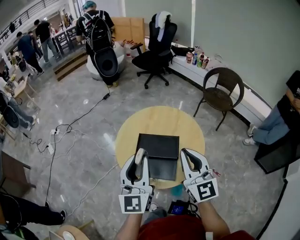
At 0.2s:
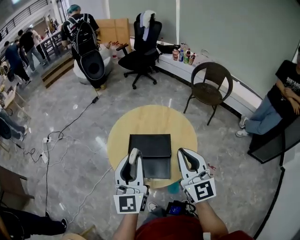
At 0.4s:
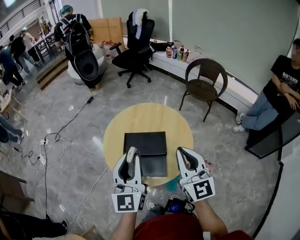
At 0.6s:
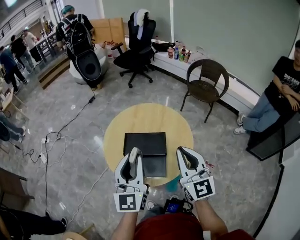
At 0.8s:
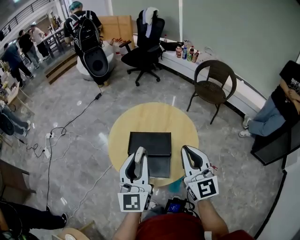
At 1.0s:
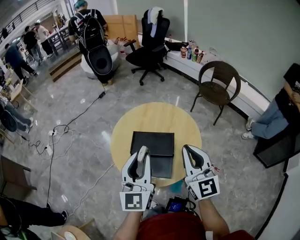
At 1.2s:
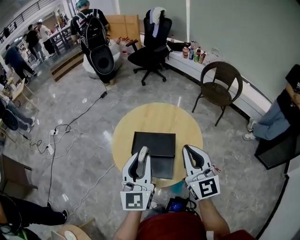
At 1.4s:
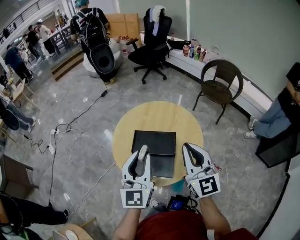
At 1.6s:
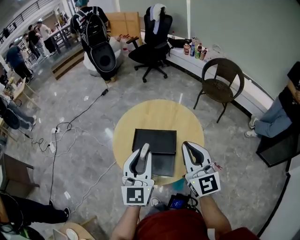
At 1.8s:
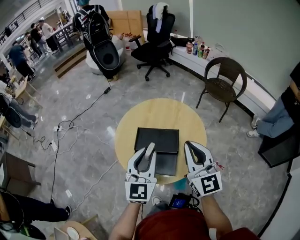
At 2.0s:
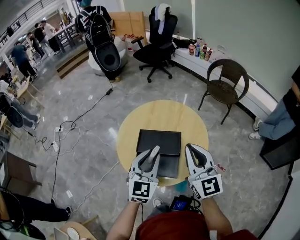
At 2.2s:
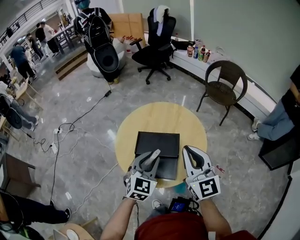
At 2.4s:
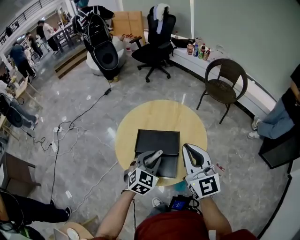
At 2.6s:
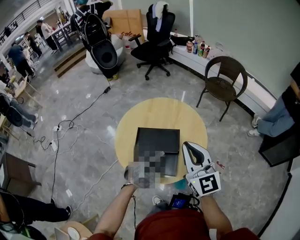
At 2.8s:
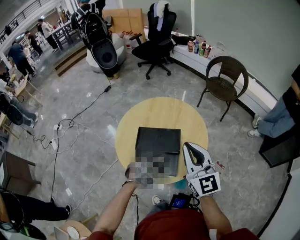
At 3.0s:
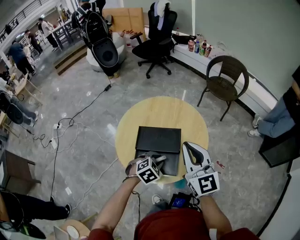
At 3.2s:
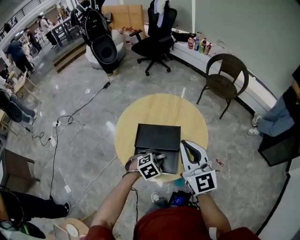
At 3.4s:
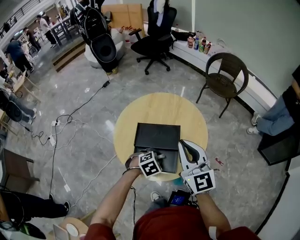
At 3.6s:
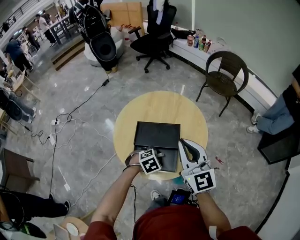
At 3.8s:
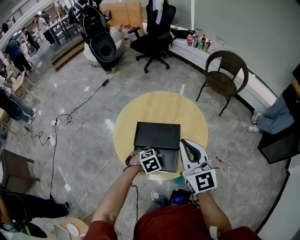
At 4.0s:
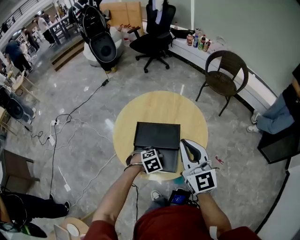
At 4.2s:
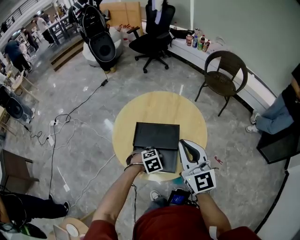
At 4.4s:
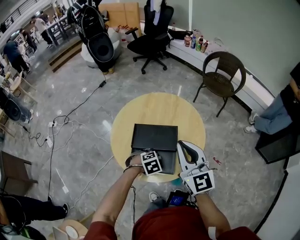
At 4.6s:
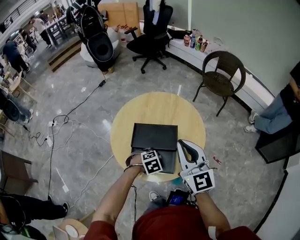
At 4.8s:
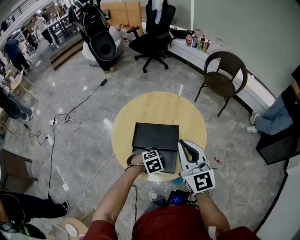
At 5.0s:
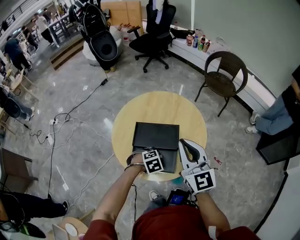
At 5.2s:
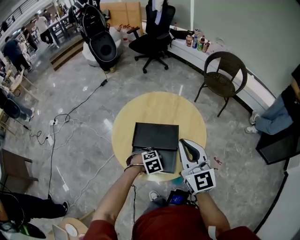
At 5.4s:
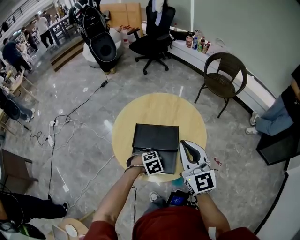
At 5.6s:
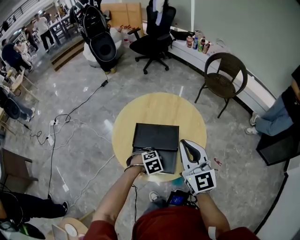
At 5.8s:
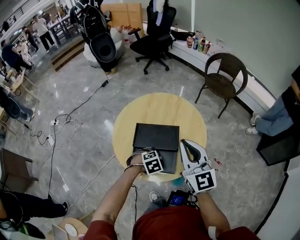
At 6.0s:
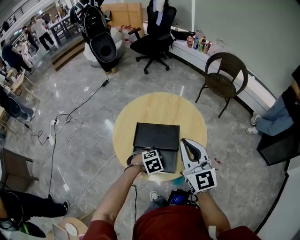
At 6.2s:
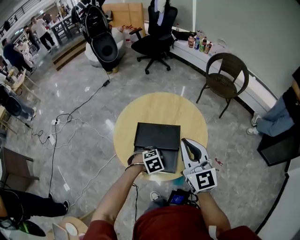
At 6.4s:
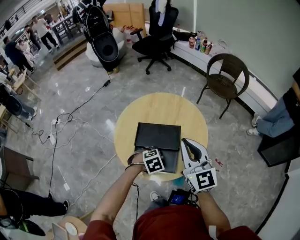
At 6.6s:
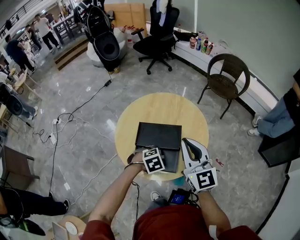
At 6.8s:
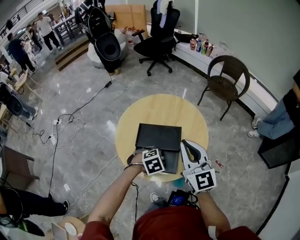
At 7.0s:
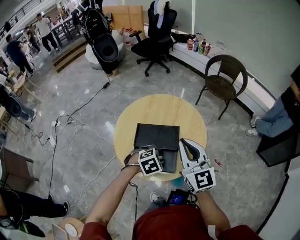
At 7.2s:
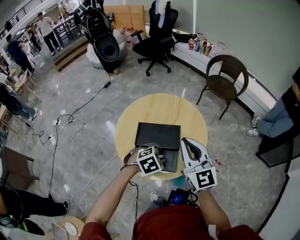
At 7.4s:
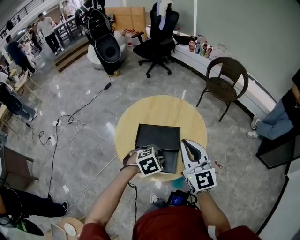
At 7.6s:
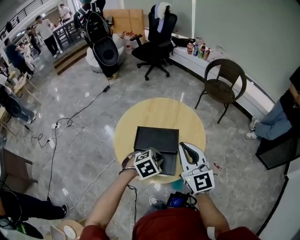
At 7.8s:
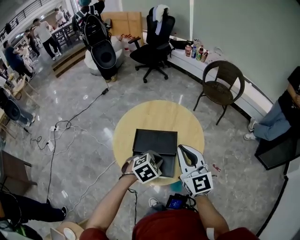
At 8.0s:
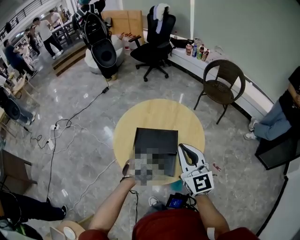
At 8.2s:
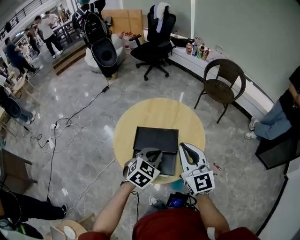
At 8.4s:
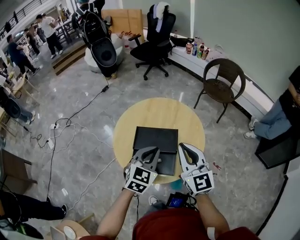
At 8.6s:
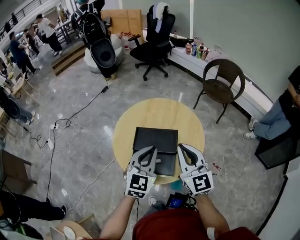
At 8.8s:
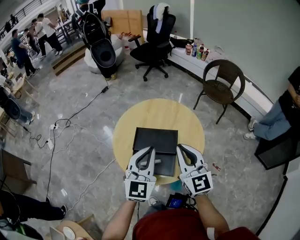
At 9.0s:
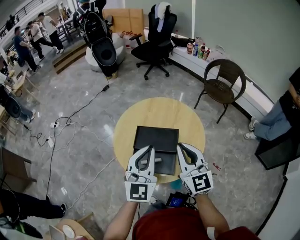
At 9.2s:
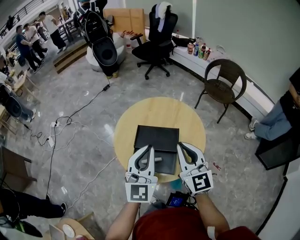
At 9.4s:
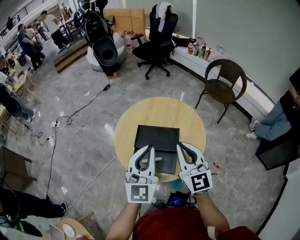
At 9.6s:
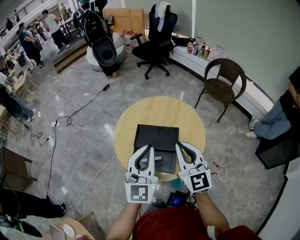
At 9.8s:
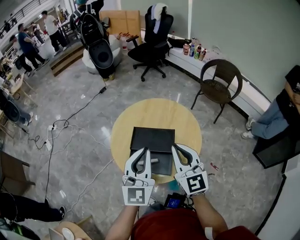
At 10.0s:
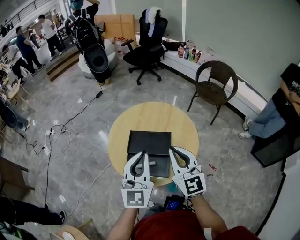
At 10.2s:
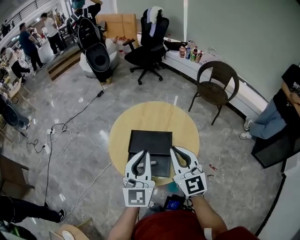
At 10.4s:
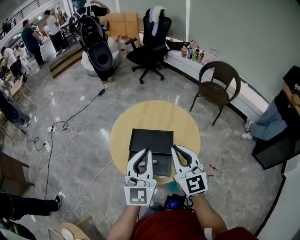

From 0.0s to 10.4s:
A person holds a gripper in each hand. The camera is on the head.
From 0.0s to 1.4s: The grippers move only a little.
From 1.4s to 3.0s: The left gripper travels downward by some 25 cm, and tips its fingers downward by roughly 60 degrees.
From 3.0s to 4.4s: The left gripper is displaced downward by approximately 5 cm.
From 4.4s to 6.0s: There are only small adjustments of the grippers.
From 6.0s to 7.4s: The left gripper shifts some 10 cm upward.
From 7.4s to 9.0s: The left gripper heads upward, covering some 20 cm, points its fingers some 70 degrees further upward, and closes.

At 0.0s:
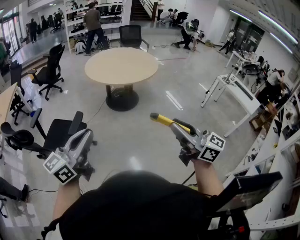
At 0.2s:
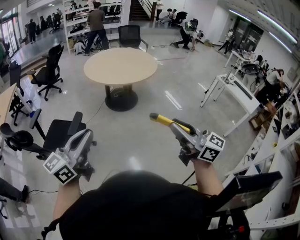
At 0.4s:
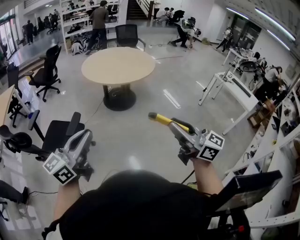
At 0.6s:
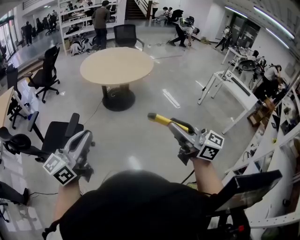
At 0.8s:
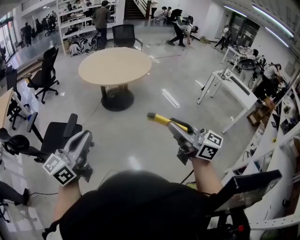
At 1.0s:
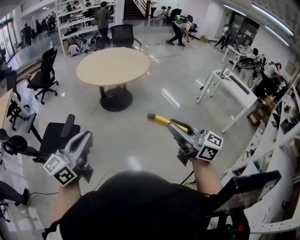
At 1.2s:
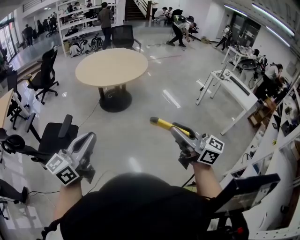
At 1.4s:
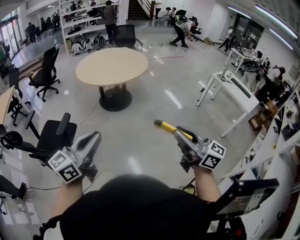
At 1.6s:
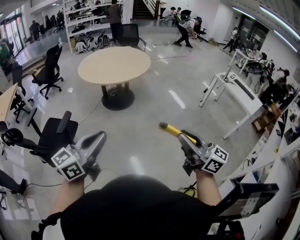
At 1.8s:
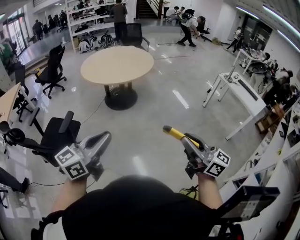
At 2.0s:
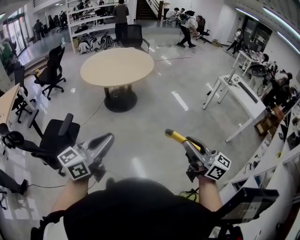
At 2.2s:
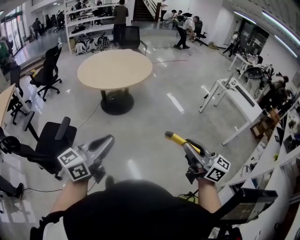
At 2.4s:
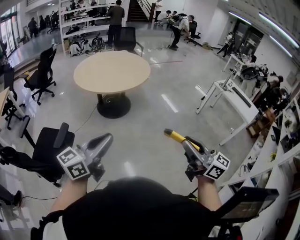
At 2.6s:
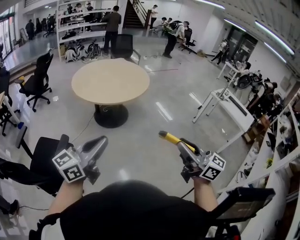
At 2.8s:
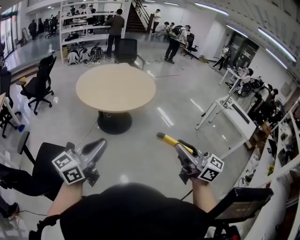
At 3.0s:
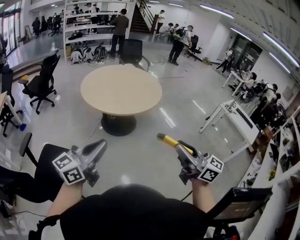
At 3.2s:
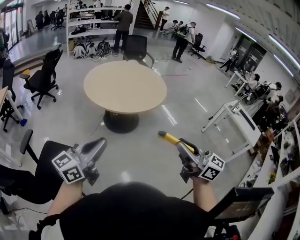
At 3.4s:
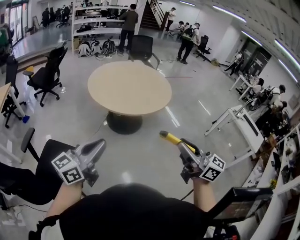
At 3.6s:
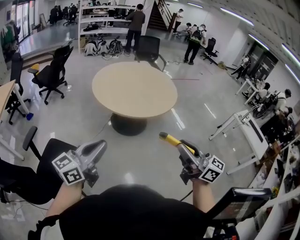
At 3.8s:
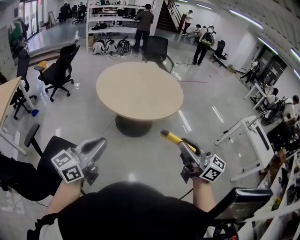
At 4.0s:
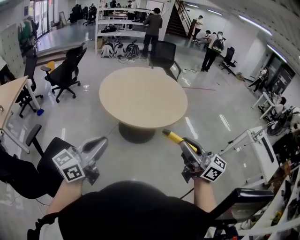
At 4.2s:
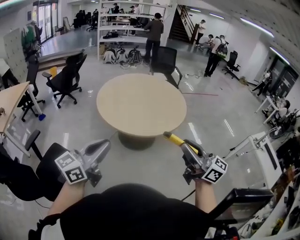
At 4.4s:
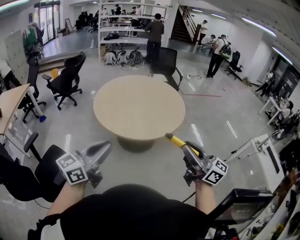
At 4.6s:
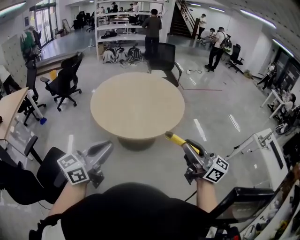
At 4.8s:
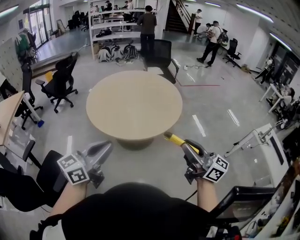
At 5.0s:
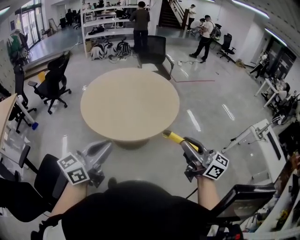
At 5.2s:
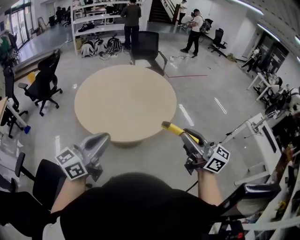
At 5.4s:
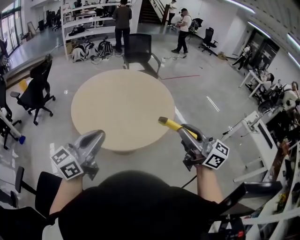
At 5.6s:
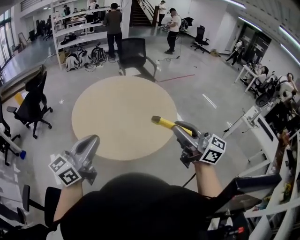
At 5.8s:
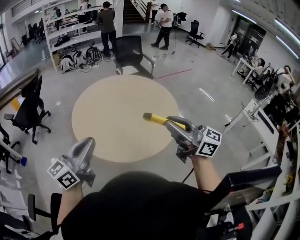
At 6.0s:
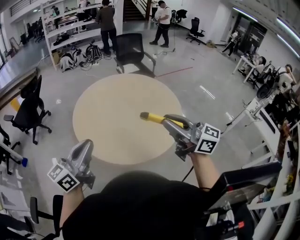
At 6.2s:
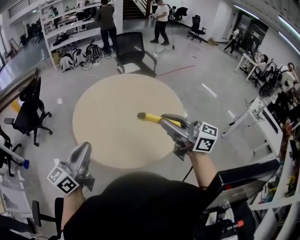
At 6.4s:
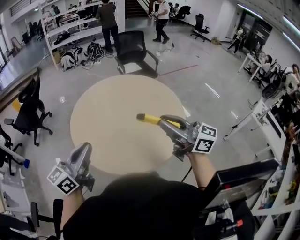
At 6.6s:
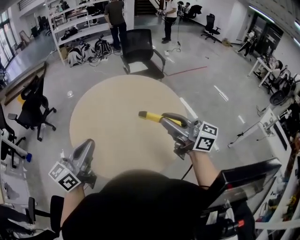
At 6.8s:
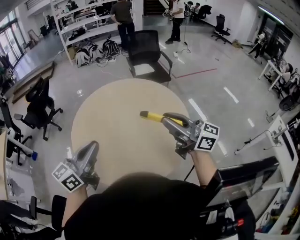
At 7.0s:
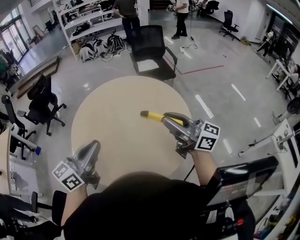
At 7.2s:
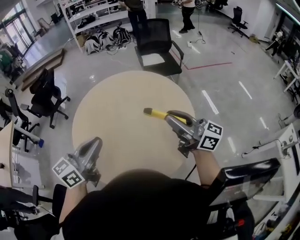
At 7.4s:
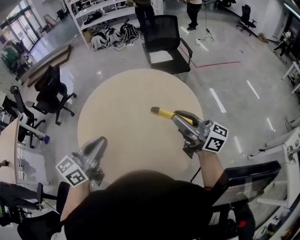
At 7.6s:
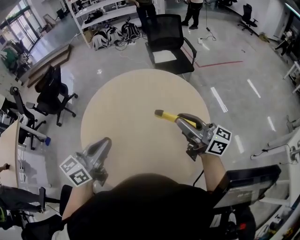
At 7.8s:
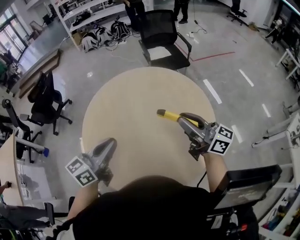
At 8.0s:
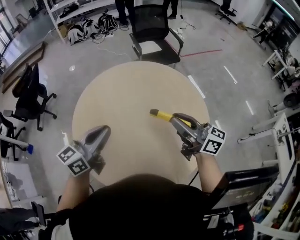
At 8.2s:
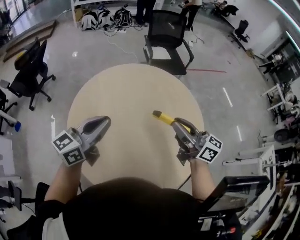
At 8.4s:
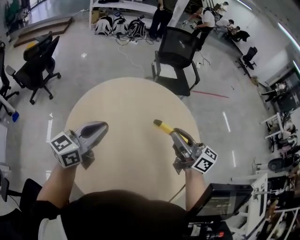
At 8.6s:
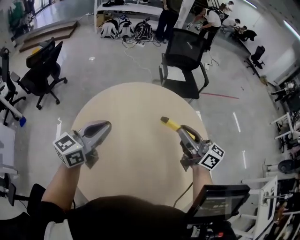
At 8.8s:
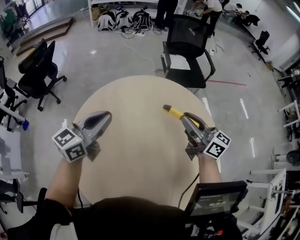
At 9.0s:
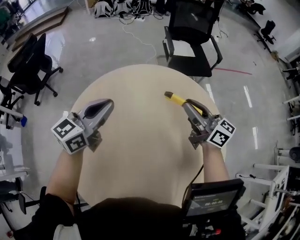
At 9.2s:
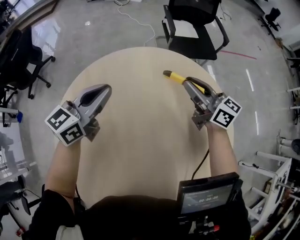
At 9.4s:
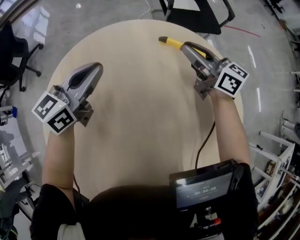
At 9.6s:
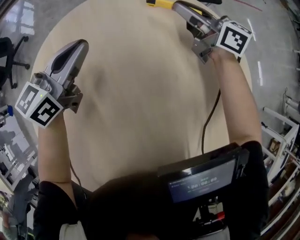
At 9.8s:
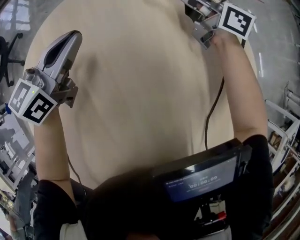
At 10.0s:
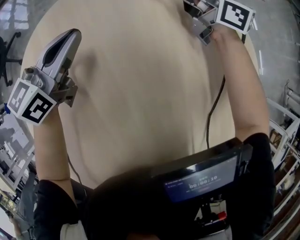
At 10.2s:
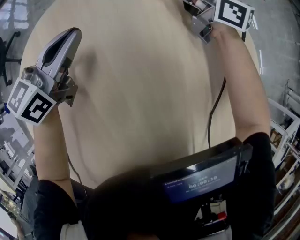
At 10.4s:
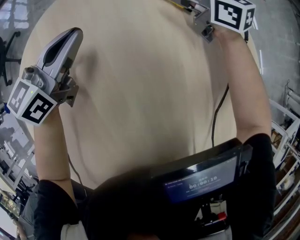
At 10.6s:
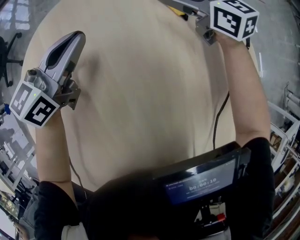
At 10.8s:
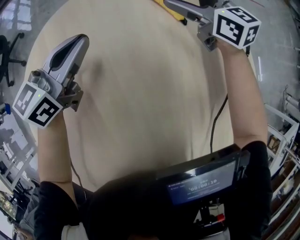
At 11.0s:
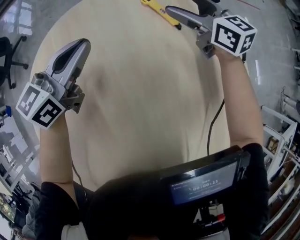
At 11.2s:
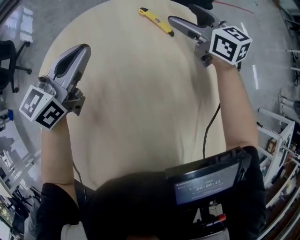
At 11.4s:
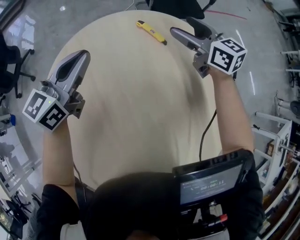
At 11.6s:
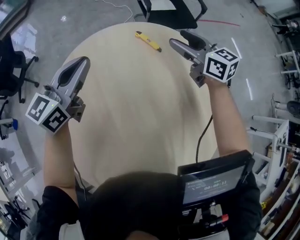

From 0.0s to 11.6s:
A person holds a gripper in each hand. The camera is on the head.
From 0.0s to 1.4s: Both grippers move to the right, roughly 15 cm.
From 1.4s to 2.8s: The grippers both shift forward and to the left by about 25 cm.
From 2.8s to 4.4s: Both grippers travel together forward, roughly 30 cm.
From 4.4s to 5.8s: Both grippers move forward and to the left, some 30 cm.
From 5.8s to 7.2s: The right gripper heads forward and to the right, covering roughly 35 cm, and turns by some 20 degrees, while the left gripper travels to the right and forward by roughly 30 cm.
From 7.2s to 8.8s: The right gripper heads forward and downward, covering some 35 cm, while the left gripper travels forward and to the left by roughly 35 cm.
From 8.8s to 10.2s: The left gripper moves downward and forward, about 30 cm. Meanwhile the right gripper moves forward and downward, approximately 35 cm, and changes its angle by roughly 20 degrees.
From 10.2s to 11.6s: The left gripper heads upward, covering some 20 cm; the right gripper is displaced upward and backward by some 20 cm, and opens.

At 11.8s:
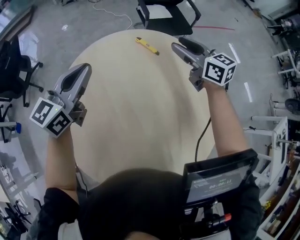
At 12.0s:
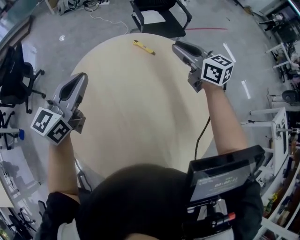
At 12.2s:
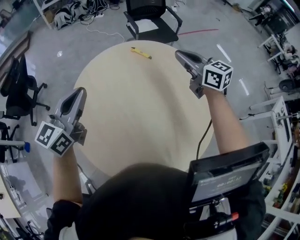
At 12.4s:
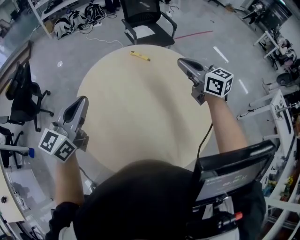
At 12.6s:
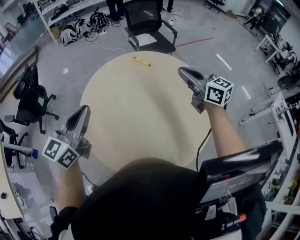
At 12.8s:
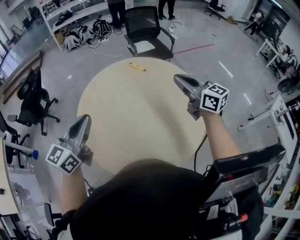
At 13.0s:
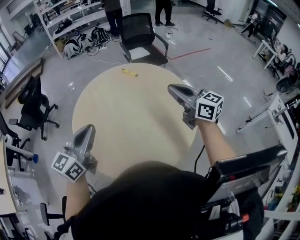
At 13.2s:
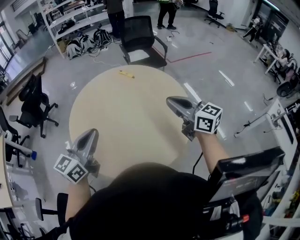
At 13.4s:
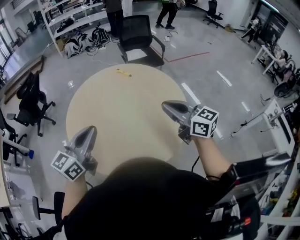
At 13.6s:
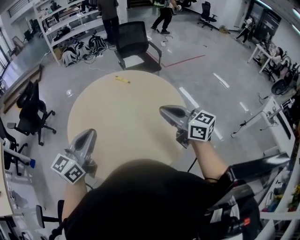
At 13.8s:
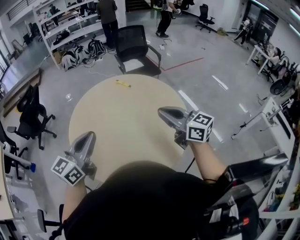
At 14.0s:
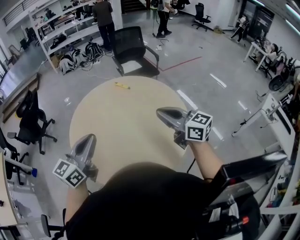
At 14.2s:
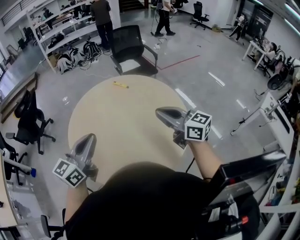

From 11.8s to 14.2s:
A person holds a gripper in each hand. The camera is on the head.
From 11.8s to 13.0s: Both grippers travel together backward, some 40 cm. The right gripper closes.
From 13.0s to 14.2s: The right gripper heads backward, covering about 5 cm.
